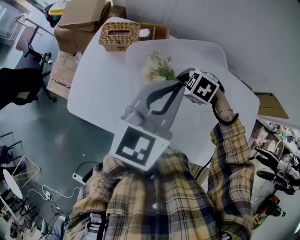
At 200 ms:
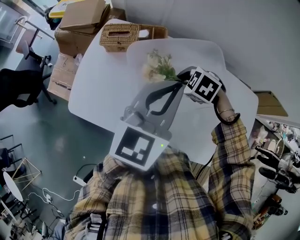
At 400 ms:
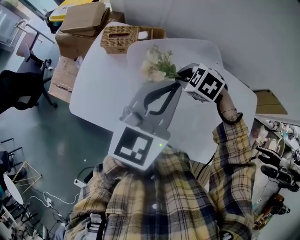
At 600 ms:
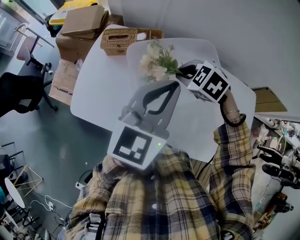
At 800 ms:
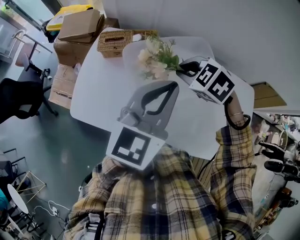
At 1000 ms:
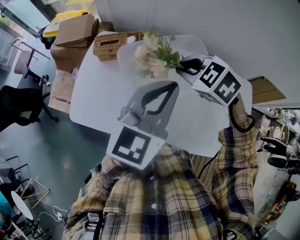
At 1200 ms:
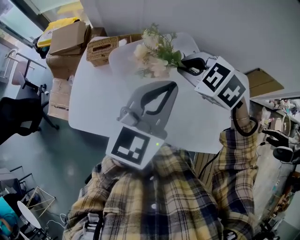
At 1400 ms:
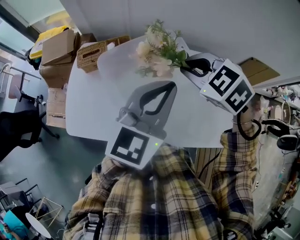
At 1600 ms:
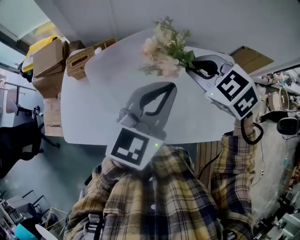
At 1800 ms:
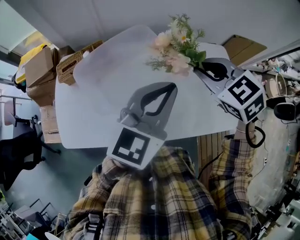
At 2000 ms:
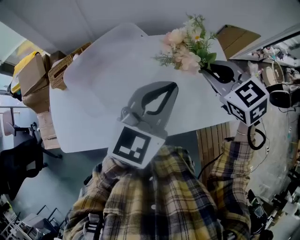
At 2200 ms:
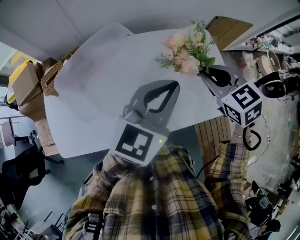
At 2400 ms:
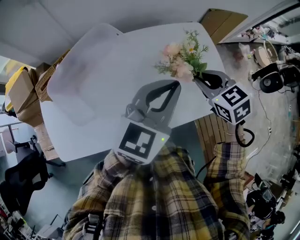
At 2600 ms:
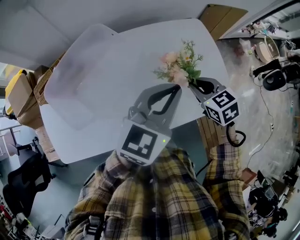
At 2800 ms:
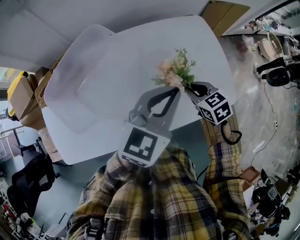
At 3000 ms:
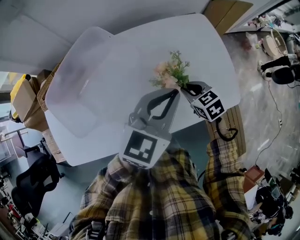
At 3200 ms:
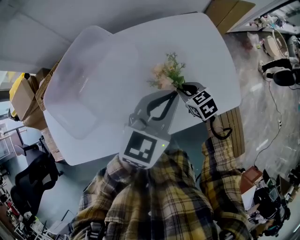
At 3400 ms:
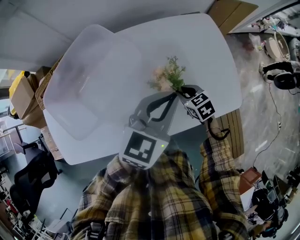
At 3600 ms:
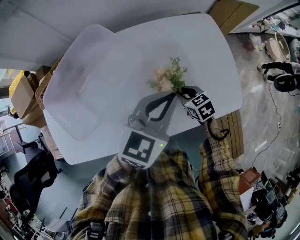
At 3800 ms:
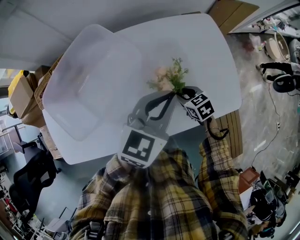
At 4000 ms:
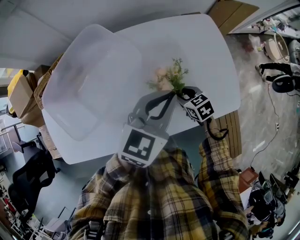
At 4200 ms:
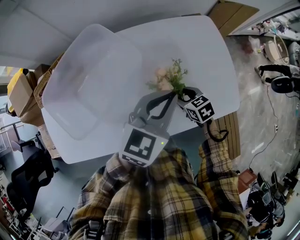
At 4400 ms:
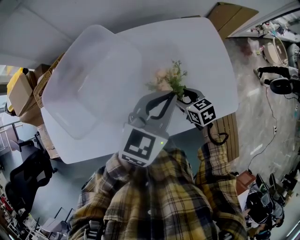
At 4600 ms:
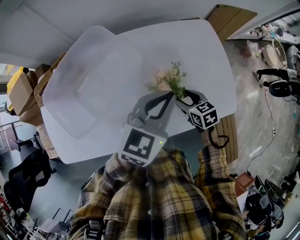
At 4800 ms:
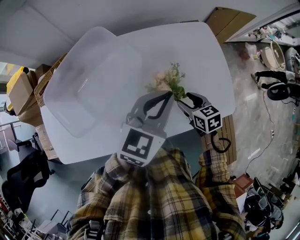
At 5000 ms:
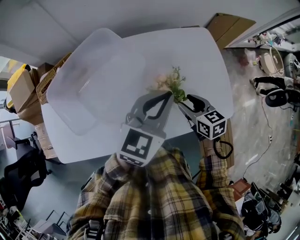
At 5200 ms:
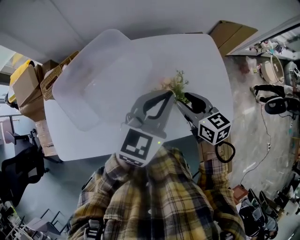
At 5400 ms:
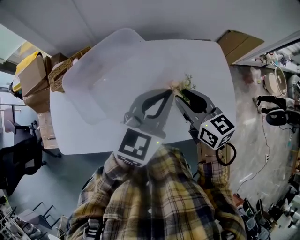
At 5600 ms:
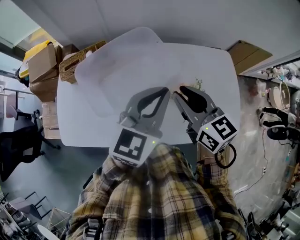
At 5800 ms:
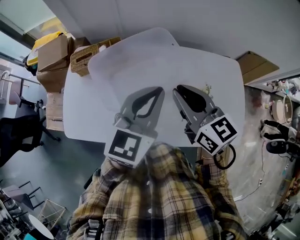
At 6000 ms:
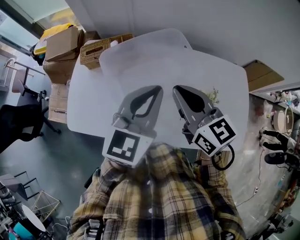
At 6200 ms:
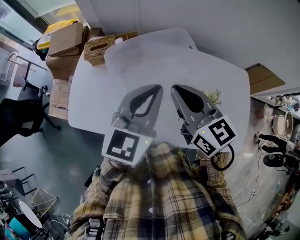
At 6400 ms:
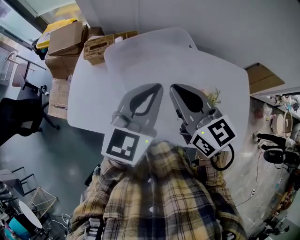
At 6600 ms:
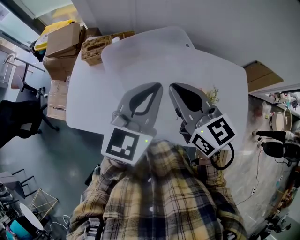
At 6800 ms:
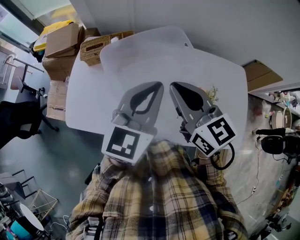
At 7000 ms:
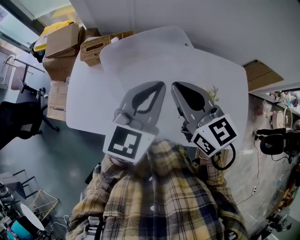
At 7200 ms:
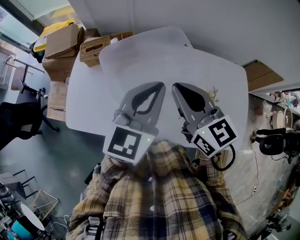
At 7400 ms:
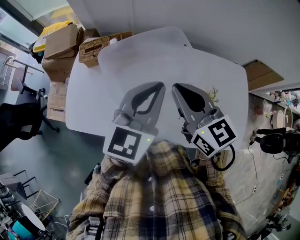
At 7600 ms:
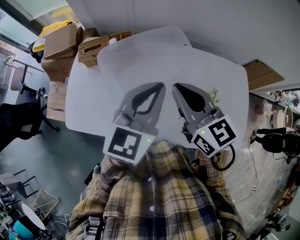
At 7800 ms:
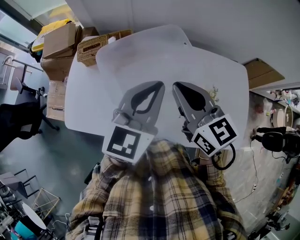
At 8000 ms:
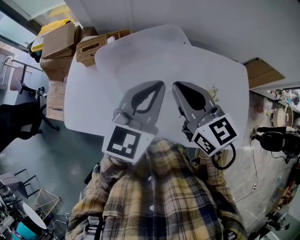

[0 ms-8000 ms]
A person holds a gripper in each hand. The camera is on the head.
0 ms to 1600 ms: The left gripper moves roughly 15 cm, and swivels about 20 degrees, while the right gripper goes roughly 25 cm upward, and swivels about 40 degrees.
1600 ms to 3200 ms: The right gripper goes roughly 35 cm downward and to the right, and rolls clockwise, seen from behind, by some 40 degrees. Meanwhile the left gripper goes roughly 25 cm to the right and downward, and swivels some 20 degrees.
3200 ms to 4800 ms: The right gripper opens.
4800 ms to 6400 ms: The right gripper ends up approximately 40 cm from where it was, angles its fingers upward, by approximately 40 degrees, and closes up. Meanwhile the left gripper ends up about 30 cm from where it was, and changes its angle by approximately 30 degrees.
6400 ms to 8000 ms: There are only small adjustments of the grippers.

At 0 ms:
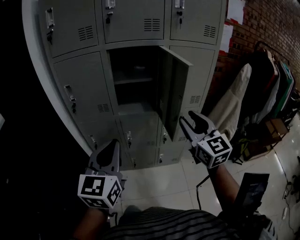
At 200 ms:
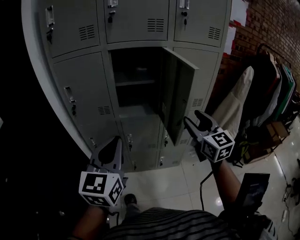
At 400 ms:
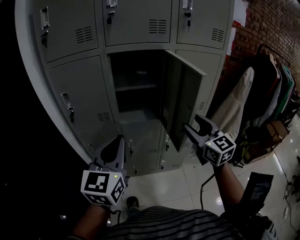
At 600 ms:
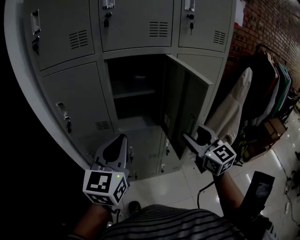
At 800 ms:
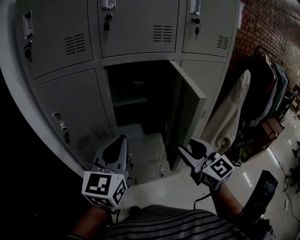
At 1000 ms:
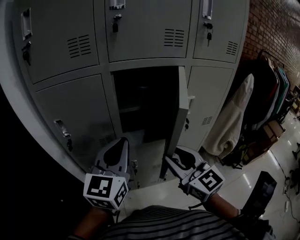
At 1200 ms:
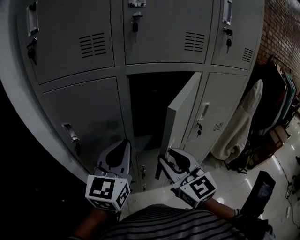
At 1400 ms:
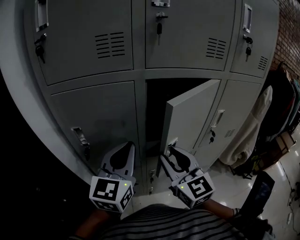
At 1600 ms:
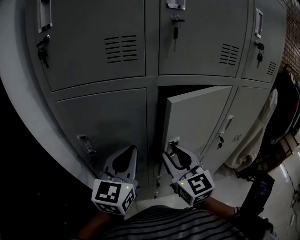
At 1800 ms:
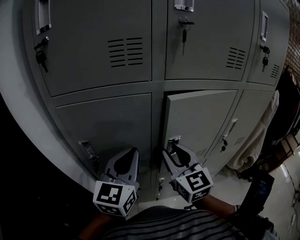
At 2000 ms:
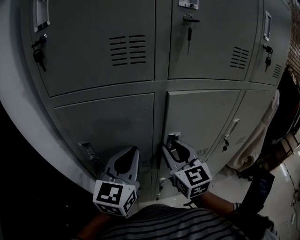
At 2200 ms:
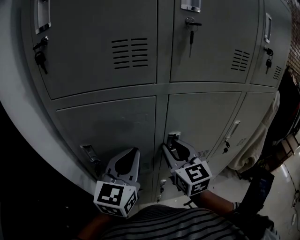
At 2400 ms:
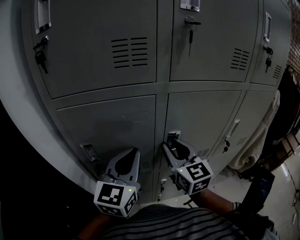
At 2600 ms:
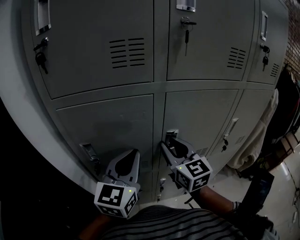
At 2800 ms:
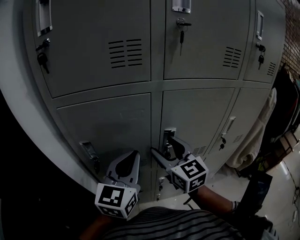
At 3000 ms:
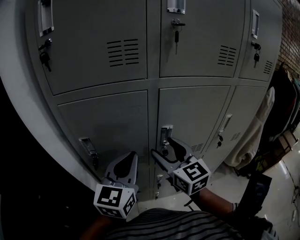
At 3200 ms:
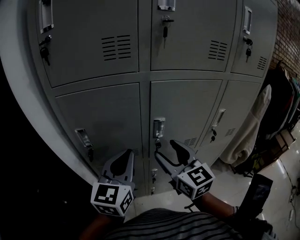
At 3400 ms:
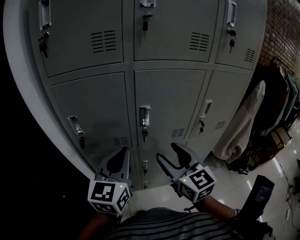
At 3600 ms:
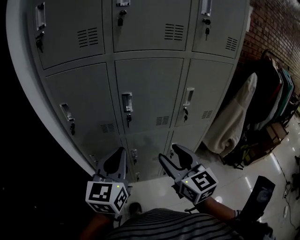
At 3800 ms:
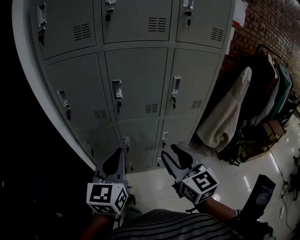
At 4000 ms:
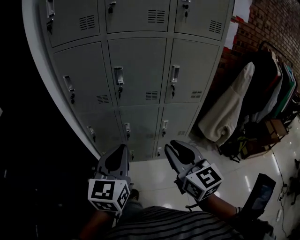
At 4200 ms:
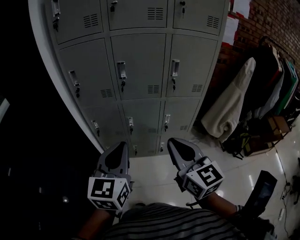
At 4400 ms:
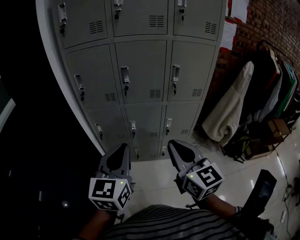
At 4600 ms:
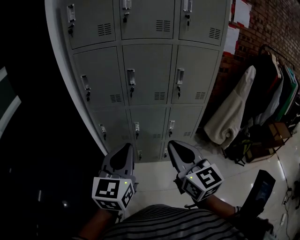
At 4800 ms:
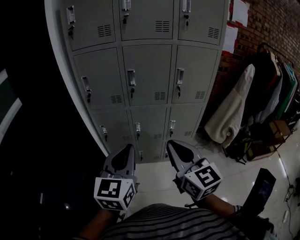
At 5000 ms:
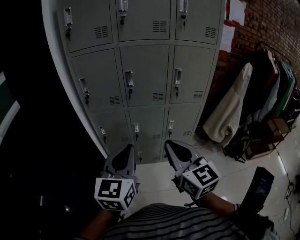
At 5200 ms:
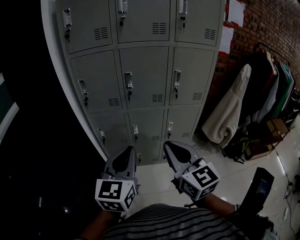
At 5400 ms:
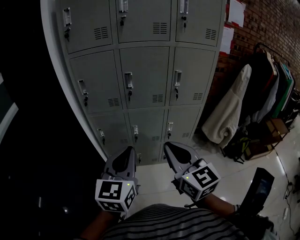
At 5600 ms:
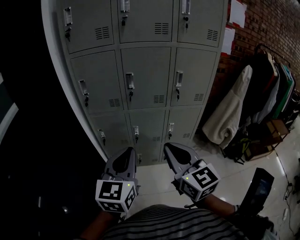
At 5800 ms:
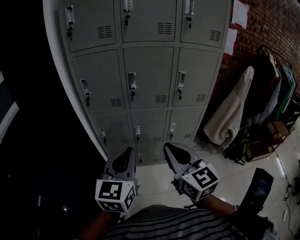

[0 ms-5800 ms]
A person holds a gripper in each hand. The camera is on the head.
0 ms to 1400 ms: The left gripper moves forward, about 25 cm, while the right gripper goes some 30 cm to the left and forward.
1400 ms to 2800 ms: The right gripper is displaced forward and to the left by some 10 cm, and opens.
2800 ms to 4400 ms: Both grippers are carried backward and to the right, about 40 cm. The right gripper closes its fingers.
4400 ms to 5800 ms: The right gripper goes about 5 cm to the left.

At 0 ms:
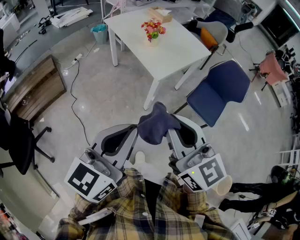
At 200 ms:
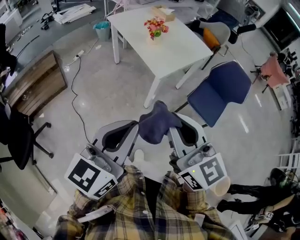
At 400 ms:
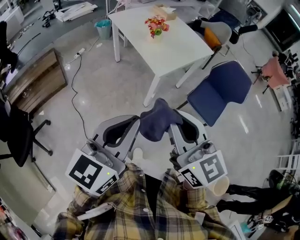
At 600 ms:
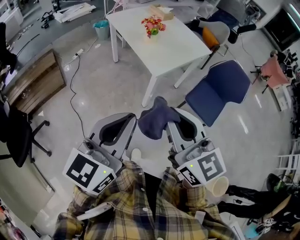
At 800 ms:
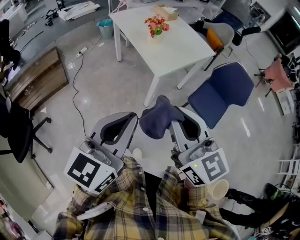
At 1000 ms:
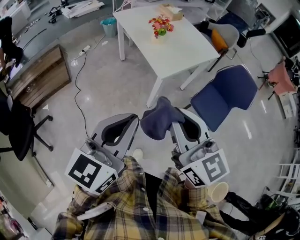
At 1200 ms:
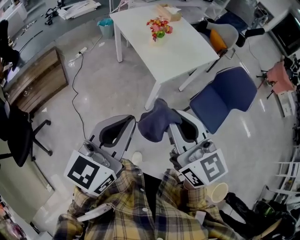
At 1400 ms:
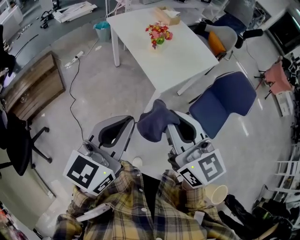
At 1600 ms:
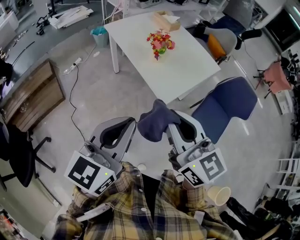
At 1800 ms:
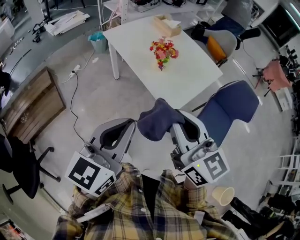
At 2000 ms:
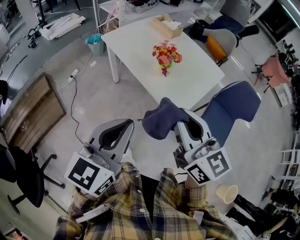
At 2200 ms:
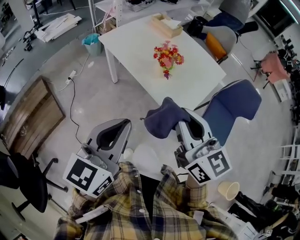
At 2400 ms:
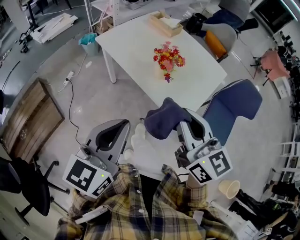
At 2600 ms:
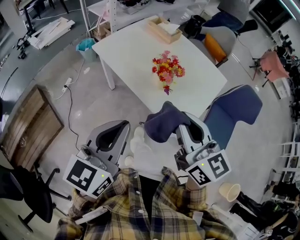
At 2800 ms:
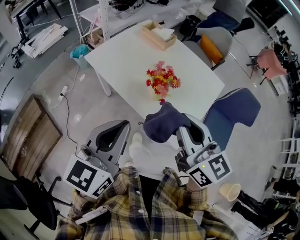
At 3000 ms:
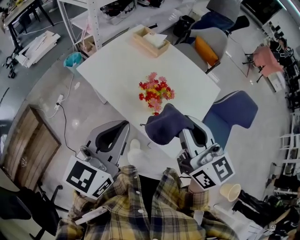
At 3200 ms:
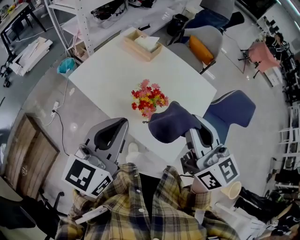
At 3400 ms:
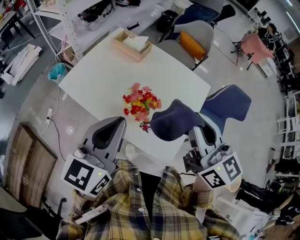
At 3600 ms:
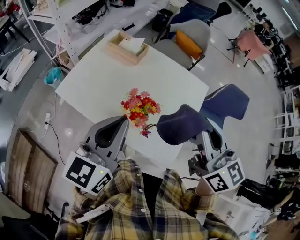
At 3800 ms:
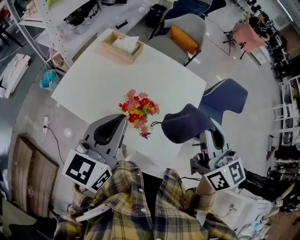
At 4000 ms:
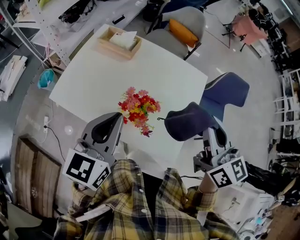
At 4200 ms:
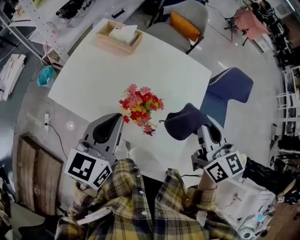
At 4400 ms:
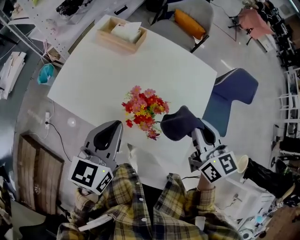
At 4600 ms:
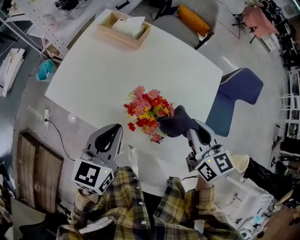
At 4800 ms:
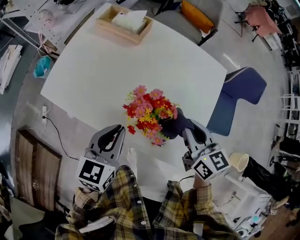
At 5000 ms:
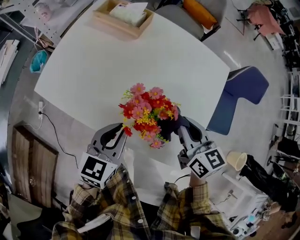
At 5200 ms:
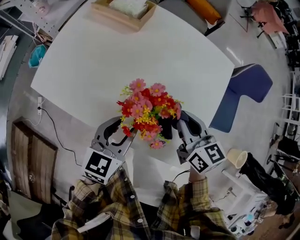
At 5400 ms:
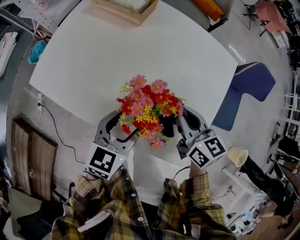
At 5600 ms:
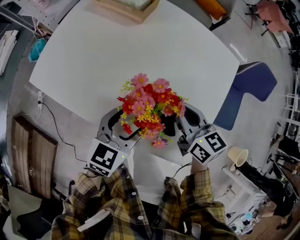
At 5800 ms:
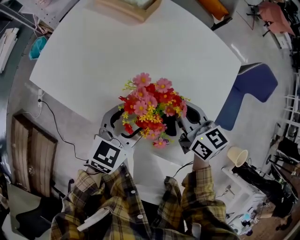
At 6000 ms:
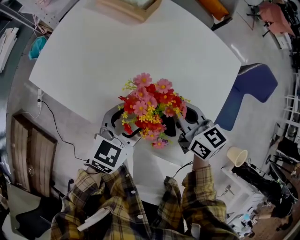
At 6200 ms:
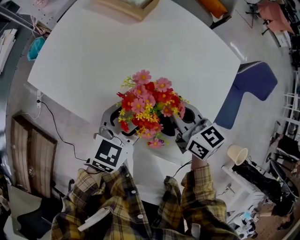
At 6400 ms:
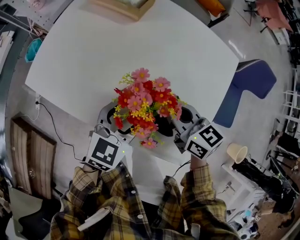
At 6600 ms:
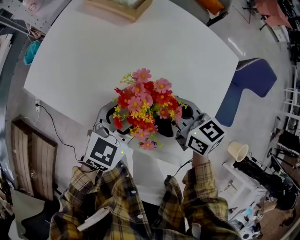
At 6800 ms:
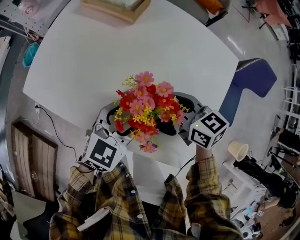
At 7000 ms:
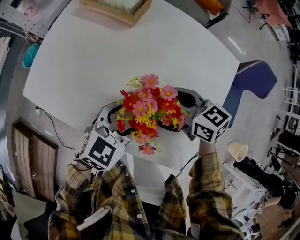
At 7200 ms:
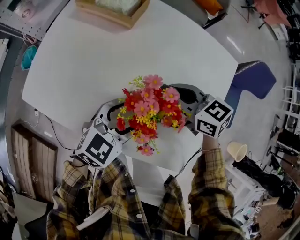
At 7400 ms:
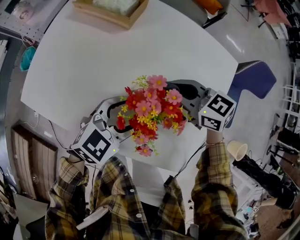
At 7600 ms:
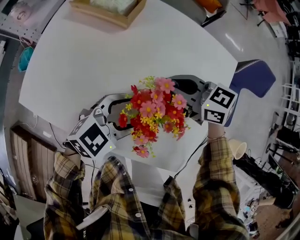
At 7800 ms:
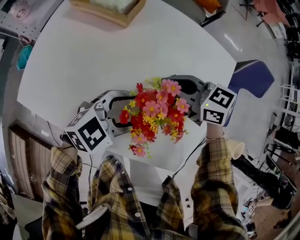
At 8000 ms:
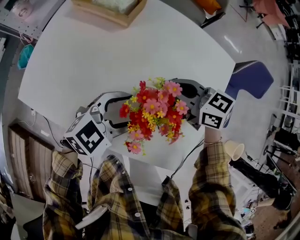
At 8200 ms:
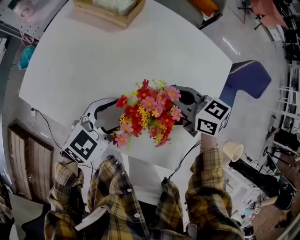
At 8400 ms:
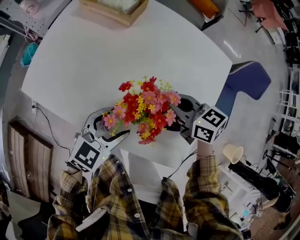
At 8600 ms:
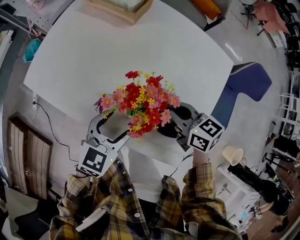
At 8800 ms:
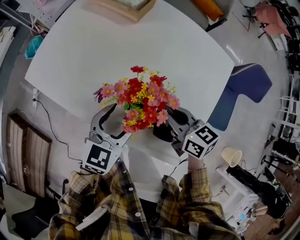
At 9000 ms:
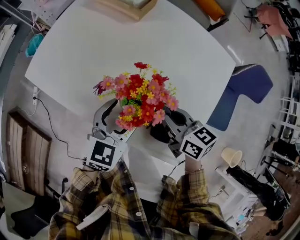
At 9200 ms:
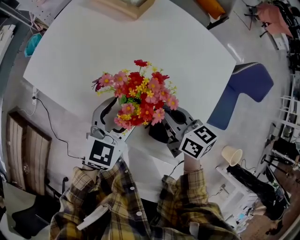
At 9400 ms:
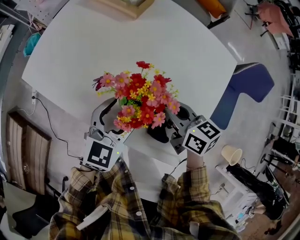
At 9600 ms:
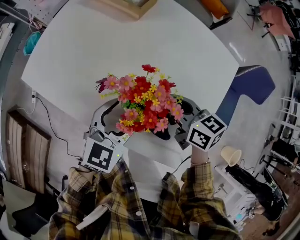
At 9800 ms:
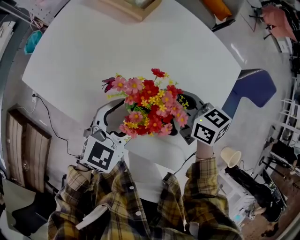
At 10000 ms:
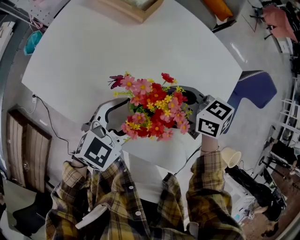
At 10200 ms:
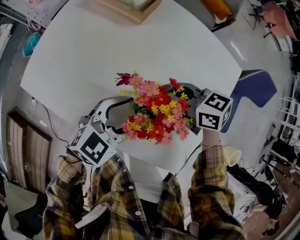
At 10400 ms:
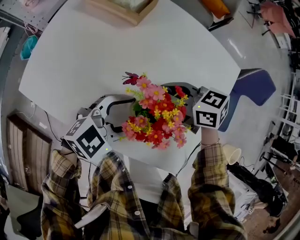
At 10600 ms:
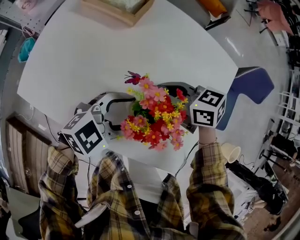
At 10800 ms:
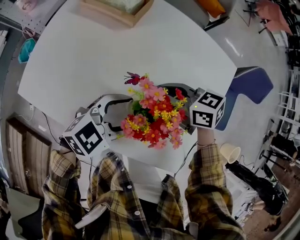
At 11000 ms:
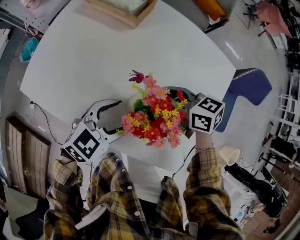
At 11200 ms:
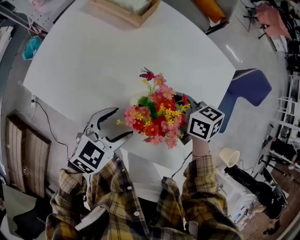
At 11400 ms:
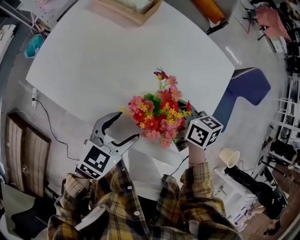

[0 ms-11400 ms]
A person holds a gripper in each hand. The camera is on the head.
0 ms to 1400 ms: Both grippers move forward, about 15 cm.
1400 ms to 2800 ms: The left gripper is displaced forward and to the left by some 40 cm. Meanwhile the right gripper goes about 35 cm forward.
2800 ms to 4200 ms: The left gripper goes some 20 cm forward. Meanwhile the right gripper heads forward and to the right, covering approximately 20 cm, and changes its angle by approximately 30 degrees.
4200 ms to 5600 ms: Both grippers travel together downward, roughly 20 cm. The left gripper opens up. The right gripper changes its angle by about 20 degrees.
5600 ms to 7200 ms: The right gripper is displaced forward by approximately 10 cm, and turns by some 20 degrees. The left gripper turns by some 20 degrees.
7200 ms to 8600 ms: The left gripper changes place by some 5 cm. Meanwhile the right gripper moves roughly 10 cm.
8600 ms to 10000 ms: The right gripper moves forward, roughly 5 cm.
10000 ms to 11400 ms: The left gripper ends up approximately 5 cm from where it was. The right gripper ends up roughly 5 cm from where it was, and swivels about 20 degrees.
